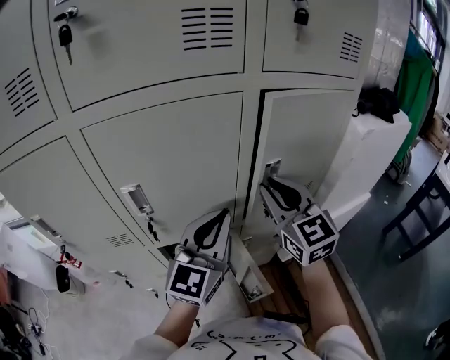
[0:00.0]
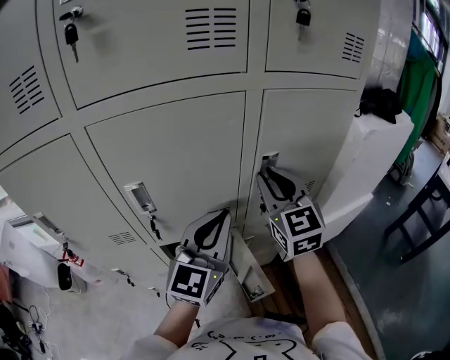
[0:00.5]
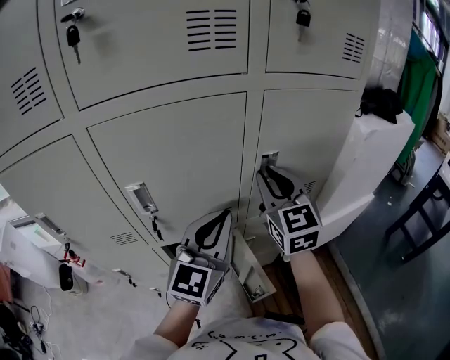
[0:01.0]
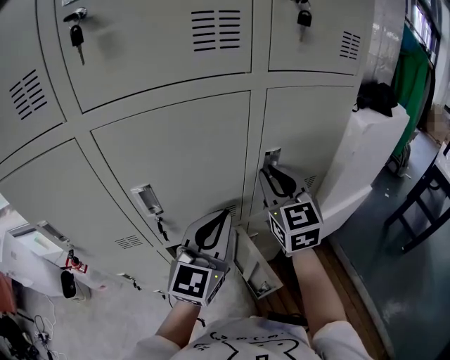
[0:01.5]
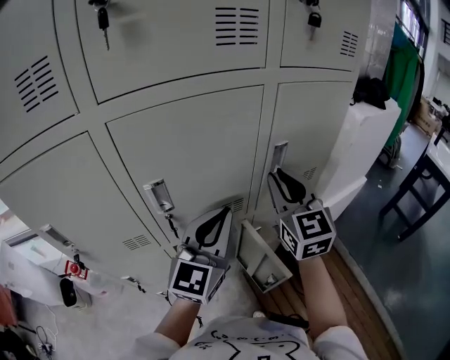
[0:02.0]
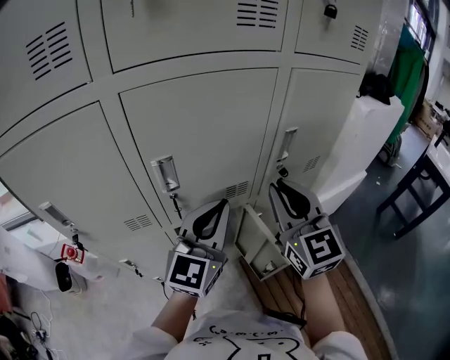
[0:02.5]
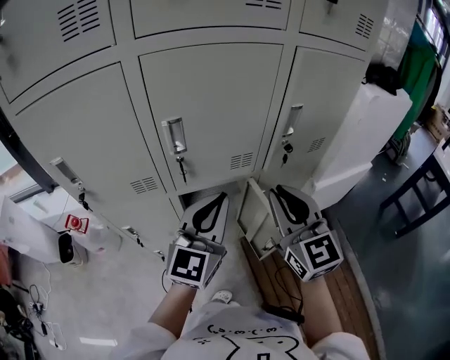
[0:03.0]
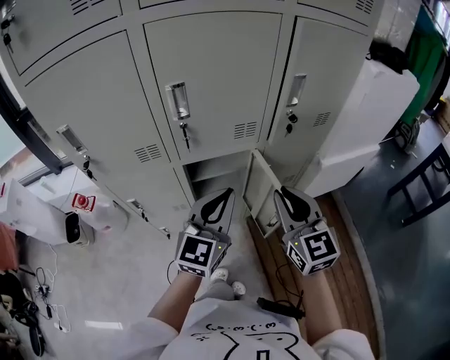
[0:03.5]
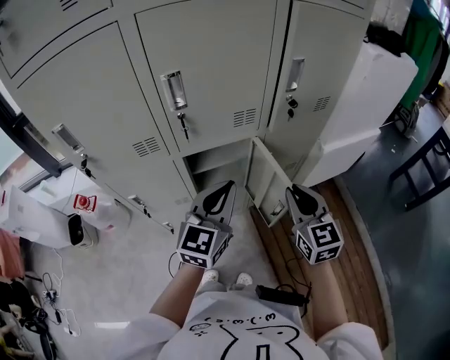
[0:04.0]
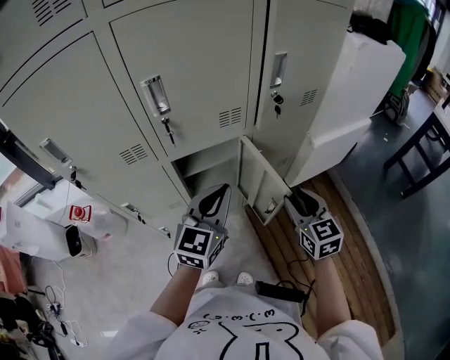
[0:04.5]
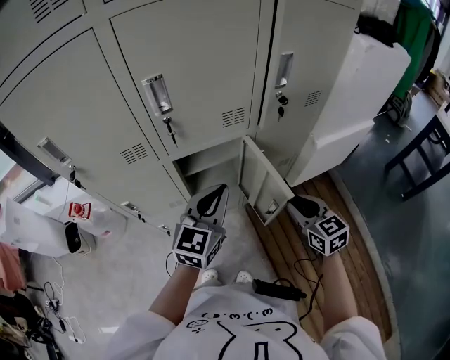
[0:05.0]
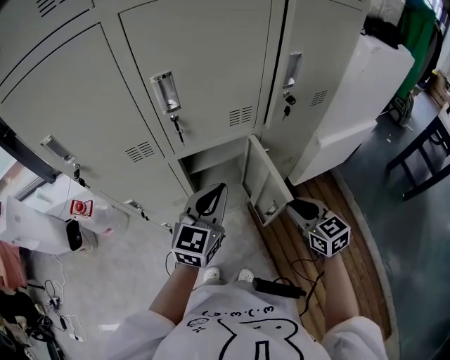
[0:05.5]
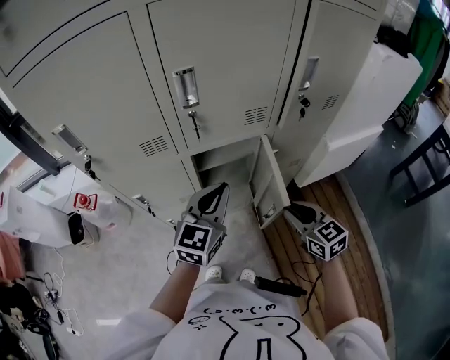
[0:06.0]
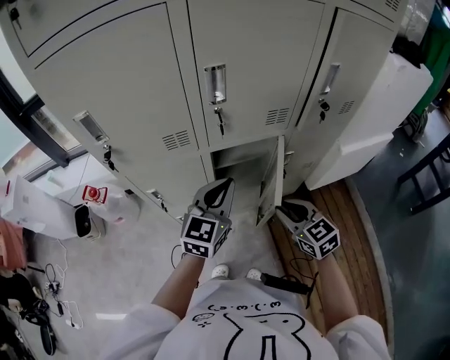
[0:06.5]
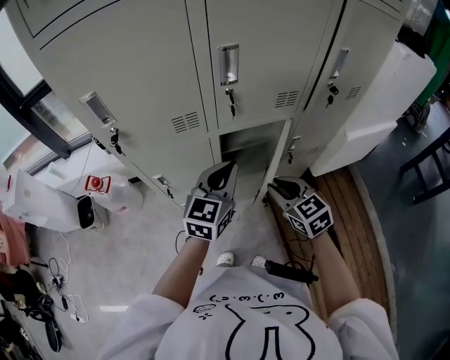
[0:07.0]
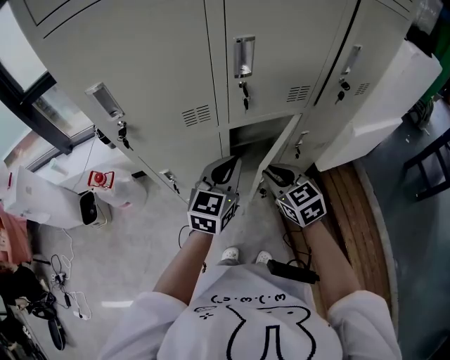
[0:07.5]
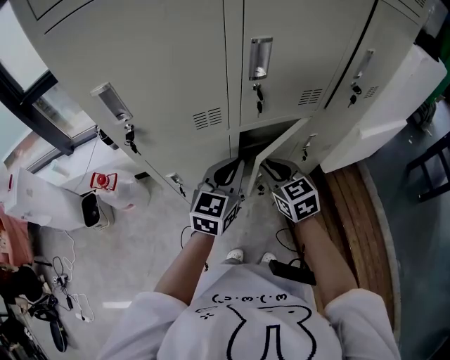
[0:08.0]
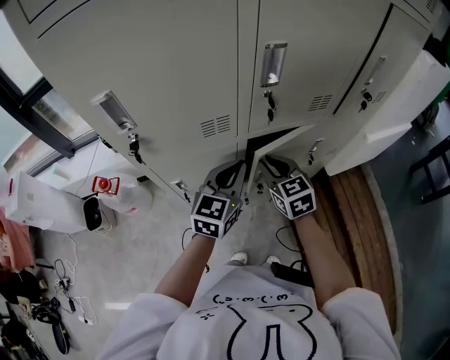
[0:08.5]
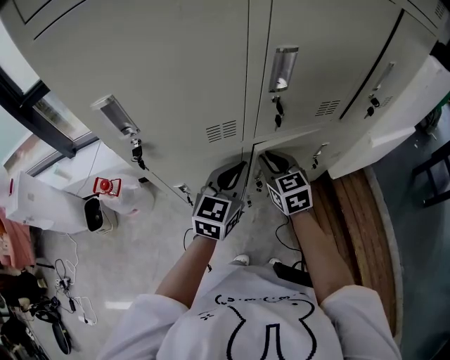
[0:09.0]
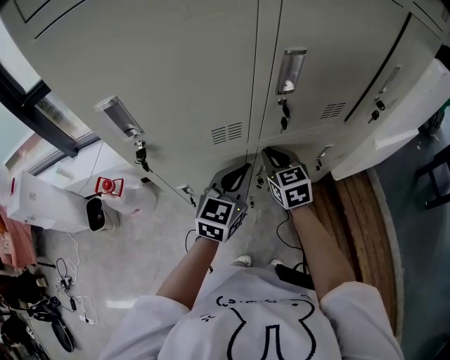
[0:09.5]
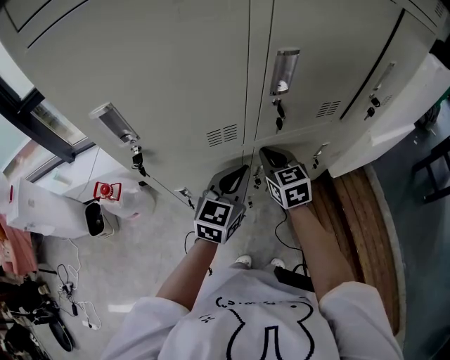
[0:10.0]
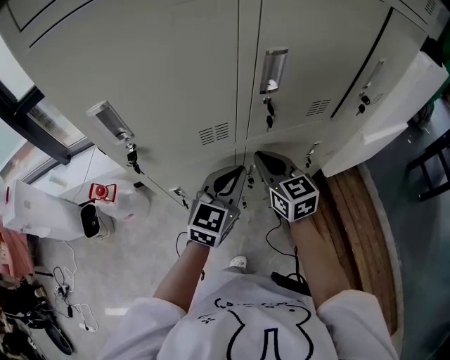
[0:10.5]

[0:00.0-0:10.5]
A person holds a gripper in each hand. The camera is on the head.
0:00.0 to 0:02.0: The left gripper moves about 5 cm.
0:02.0 to 0:04.0: The right gripper moves downward and backward, roughly 25 cm. Meanwhile the left gripper travels downward and backward by roughly 15 cm.
0:04.0 to 0:06.5: The right gripper travels to the left and downward by roughly 15 cm, and rotates approximately 30 degrees, while the left gripper goes approximately 10 cm to the left.
0:06.5 to 0:08.5: The left gripper heads to the left, covering approximately 10 cm; the right gripper moves to the left and forward, roughly 20 cm.
0:08.5 to 0:10.5: The right gripper goes about 5 cm upward.

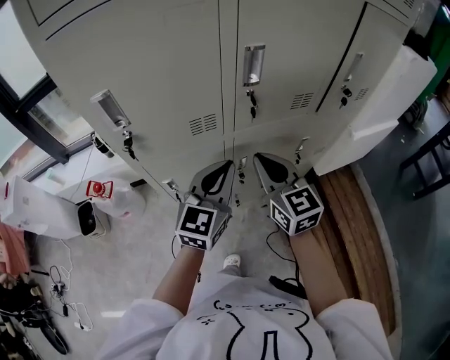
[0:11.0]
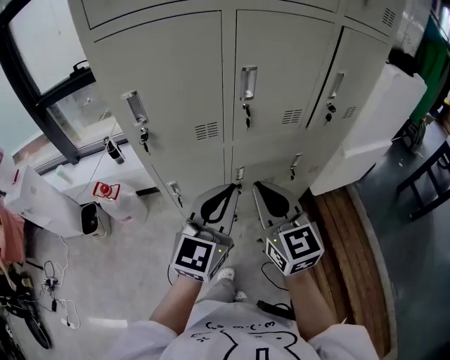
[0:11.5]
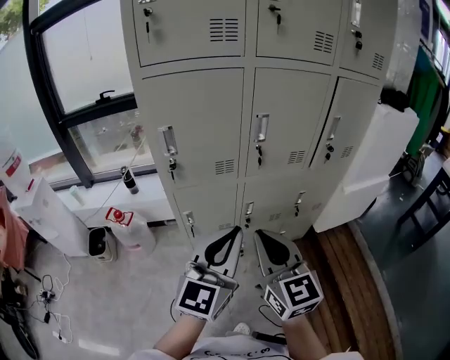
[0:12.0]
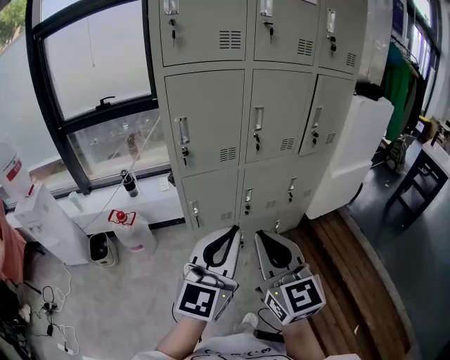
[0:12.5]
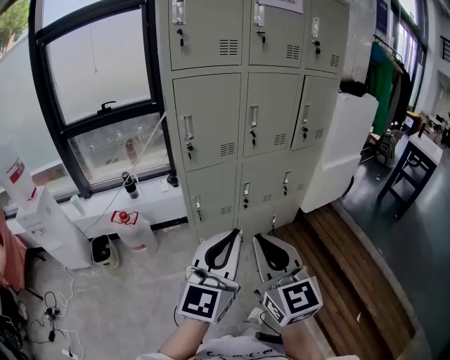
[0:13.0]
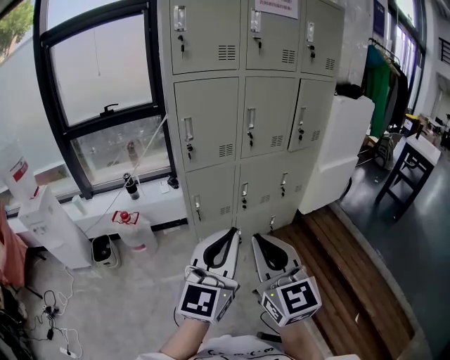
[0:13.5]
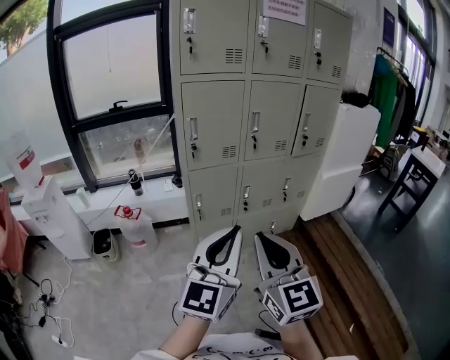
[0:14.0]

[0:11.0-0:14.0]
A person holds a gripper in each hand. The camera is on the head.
0:11.0 to 0:12.5: The two grippers go about 35 cm backward and upward.
0:12.5 to 0:14.0: The two grippers go about 10 cm backward.

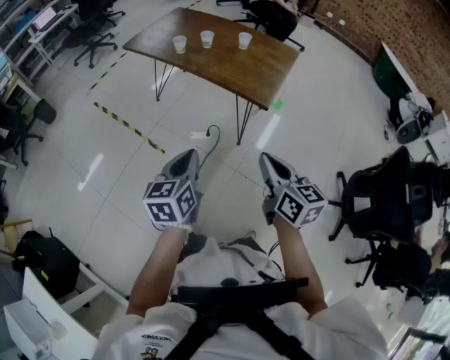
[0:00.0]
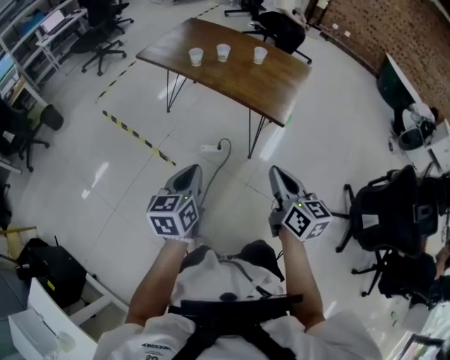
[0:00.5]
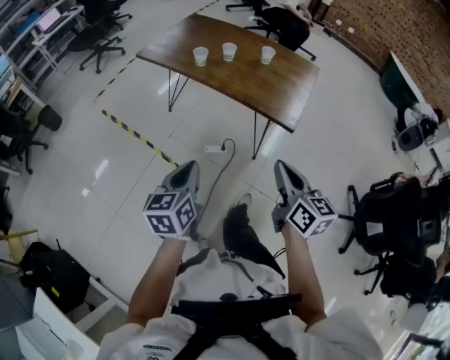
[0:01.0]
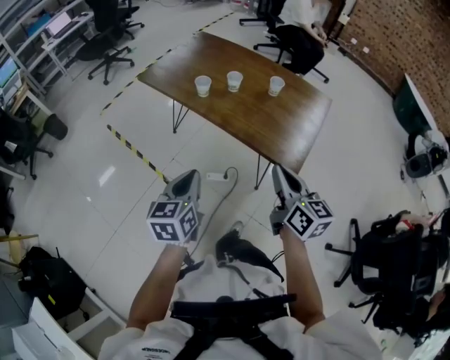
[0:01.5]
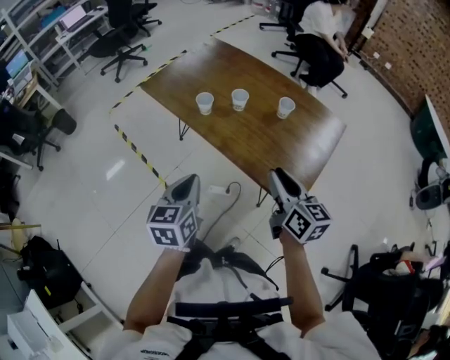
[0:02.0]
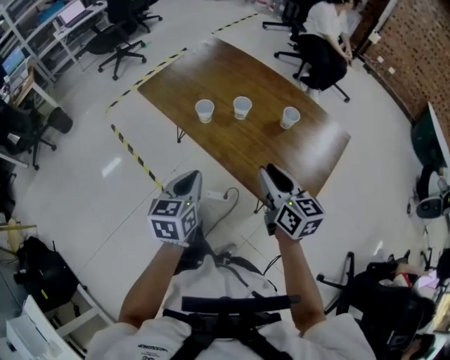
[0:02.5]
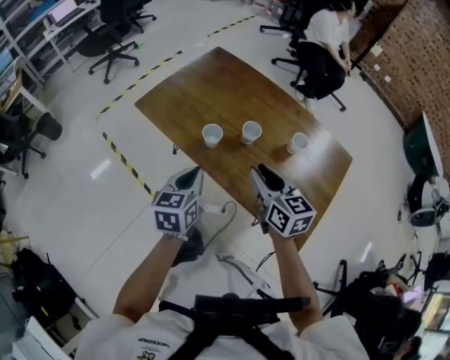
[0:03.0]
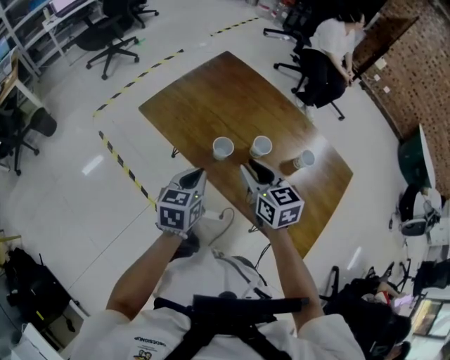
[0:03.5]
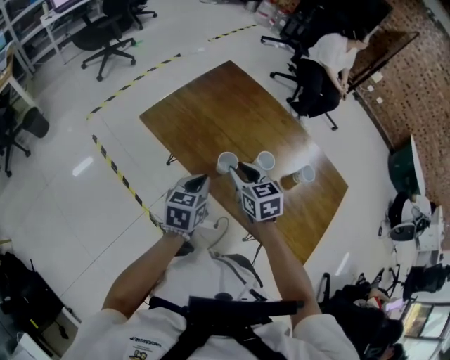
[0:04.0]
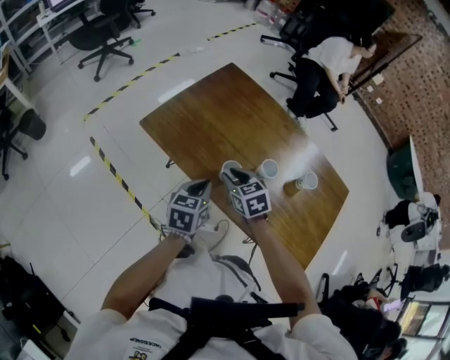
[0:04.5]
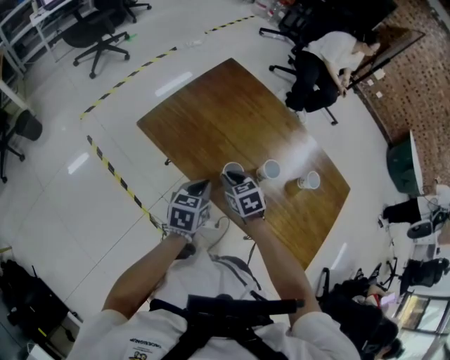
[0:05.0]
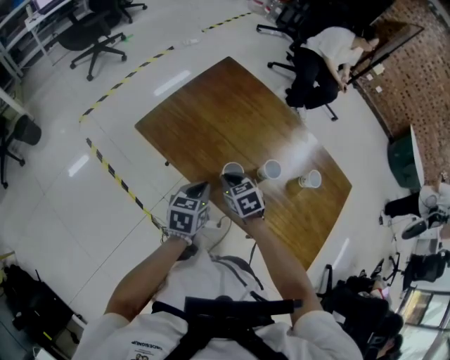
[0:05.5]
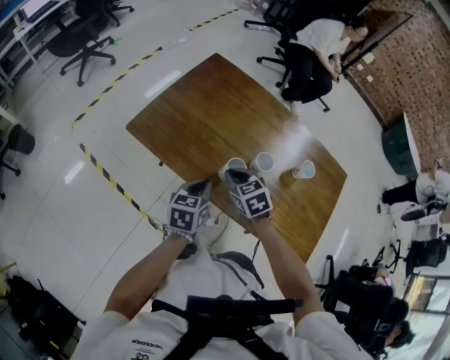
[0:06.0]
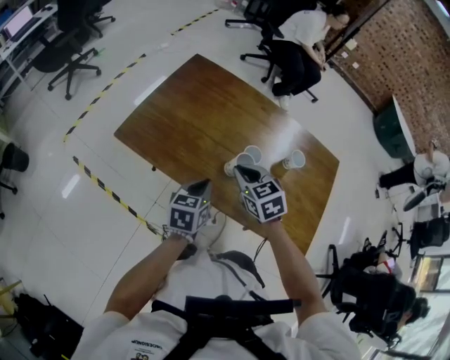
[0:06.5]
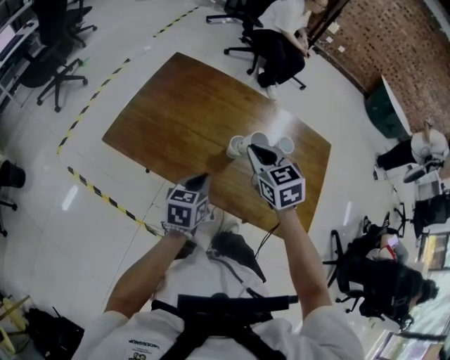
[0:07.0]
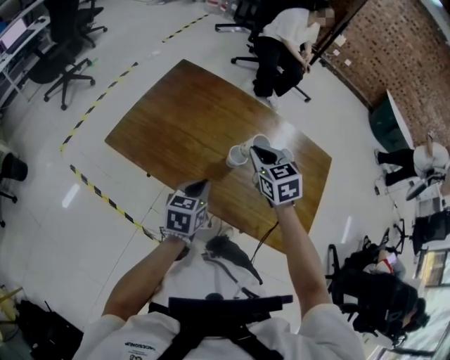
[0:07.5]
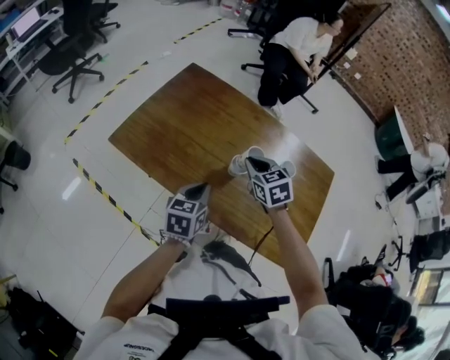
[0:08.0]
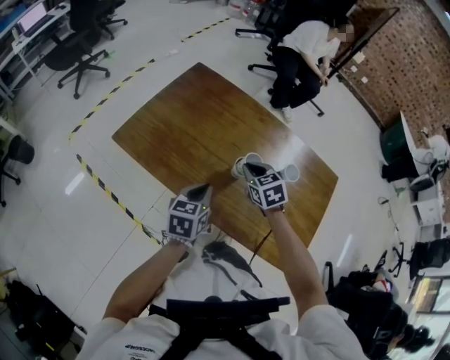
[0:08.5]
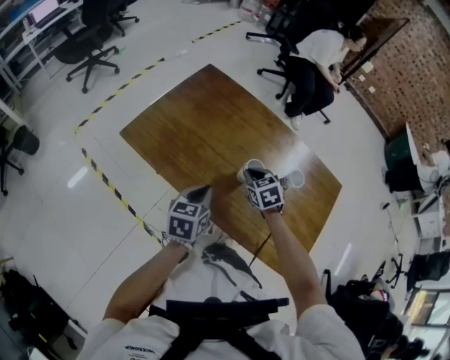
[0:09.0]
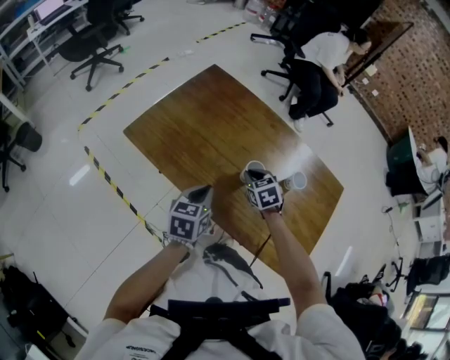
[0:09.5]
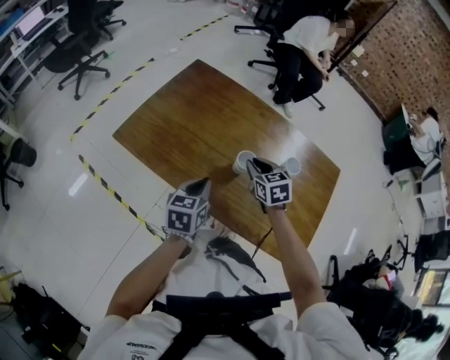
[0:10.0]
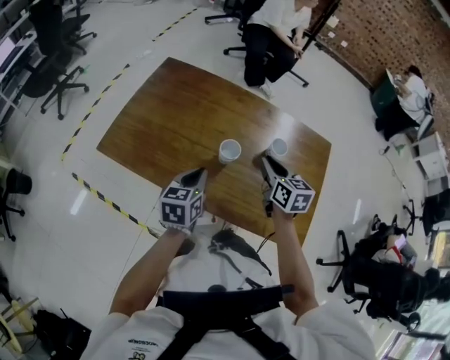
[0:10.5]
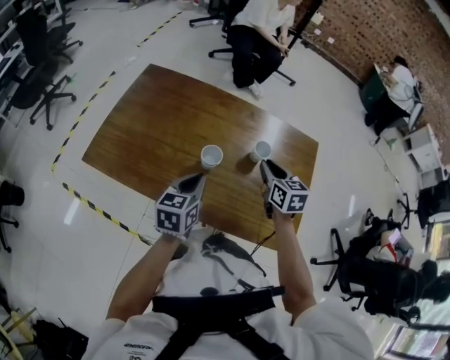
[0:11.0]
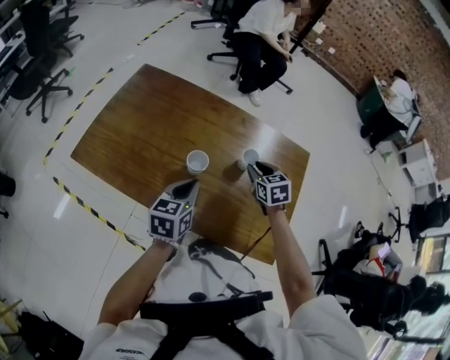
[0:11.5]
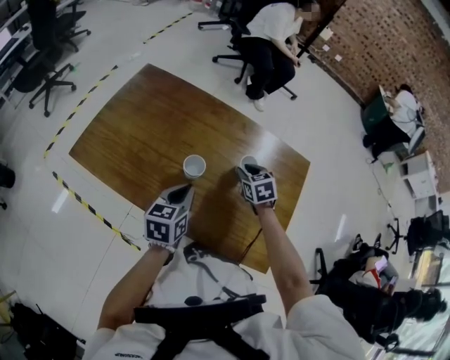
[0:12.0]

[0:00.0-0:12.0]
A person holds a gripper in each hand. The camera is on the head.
0:00.0 to 0:02.0: Both grippers travel together forward, about 35 cm. The right gripper opens up.
0:02.0 to 0:04.0: The right gripper goes about 40 cm forward and to the left, and swivels roughly 40 degrees, while the left gripper moves forward, about 30 cm.
0:04.0 to 0:06.0: The left gripper shifts by some 5 cm; the right gripper moves downward, approximately 5 cm, and closes.
0:06.0 to 0:08.0: The left gripper is displaced to the right by approximately 10 cm; the right gripper moves to the right, upward and forward, approximately 15 cm.
0:10.0 to 0:12.0: The grippers both shift to the right by roughly 15 cm.

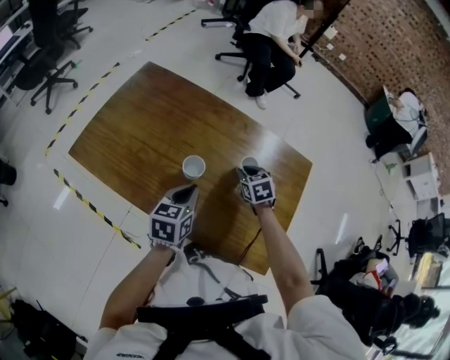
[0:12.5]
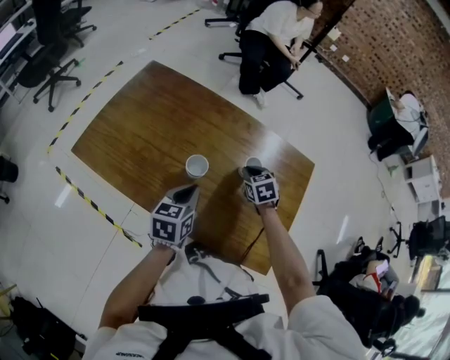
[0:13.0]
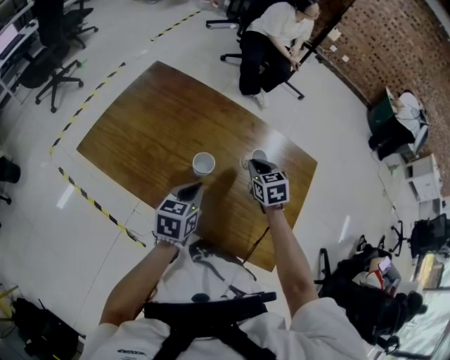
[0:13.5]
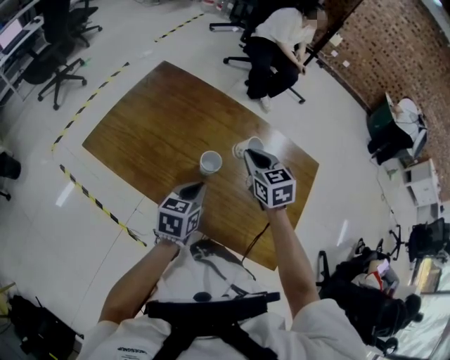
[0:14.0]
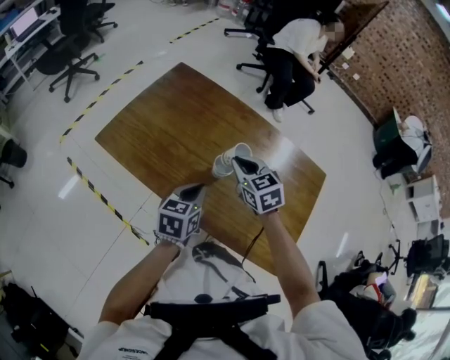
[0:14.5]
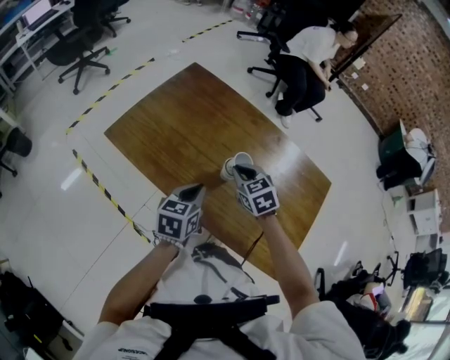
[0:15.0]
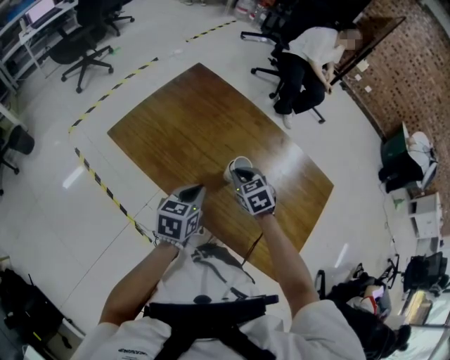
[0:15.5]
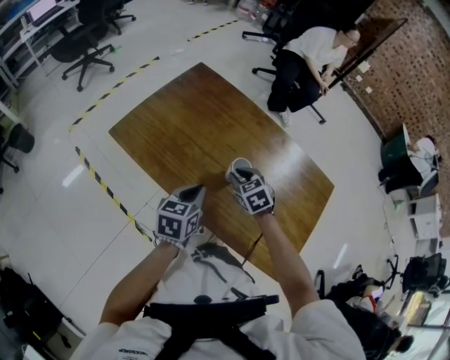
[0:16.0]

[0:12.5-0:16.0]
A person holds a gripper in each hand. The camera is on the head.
0:12.5 to 0:14.5: The left gripper goes about 5 cm to the left; the right gripper shifts about 20 cm to the left and upward, and swivels some 20 degrees.
0:14.5 to 0:16.0: The left gripper moves to the left, some 5 cm; the right gripper travels downward by some 10 cm.
